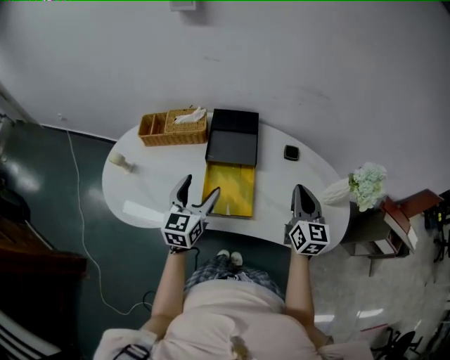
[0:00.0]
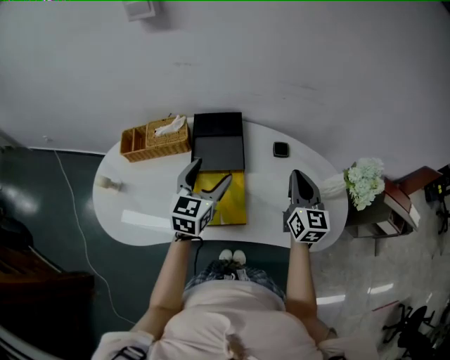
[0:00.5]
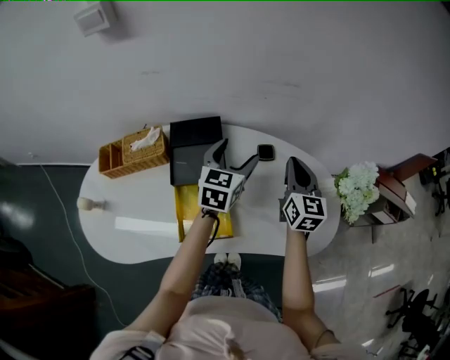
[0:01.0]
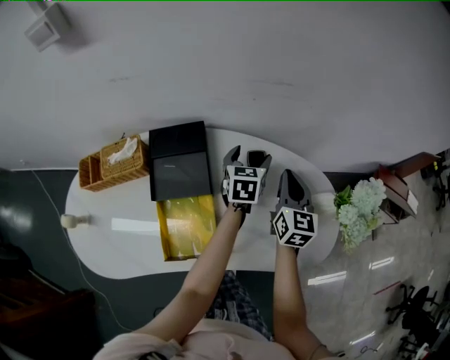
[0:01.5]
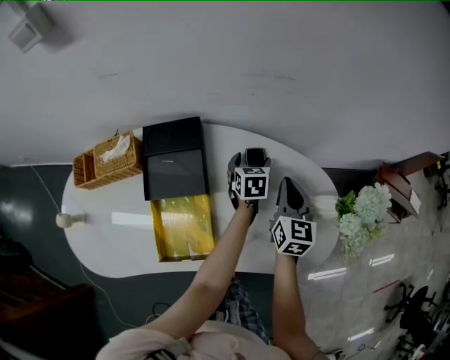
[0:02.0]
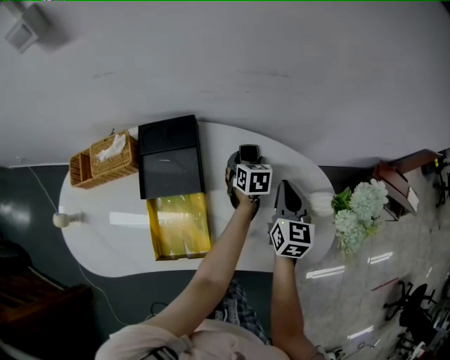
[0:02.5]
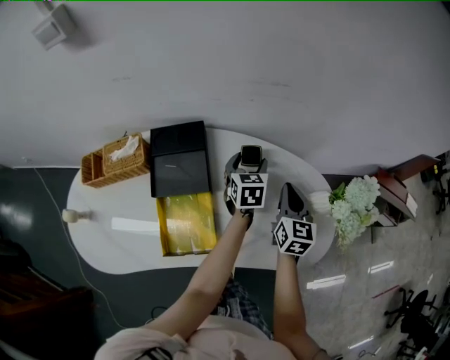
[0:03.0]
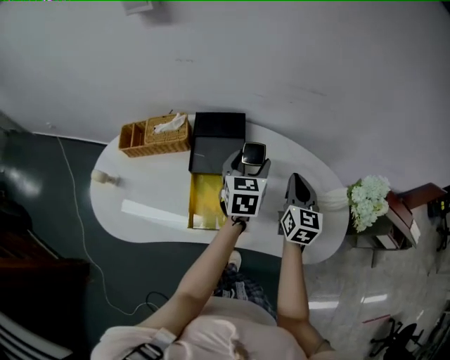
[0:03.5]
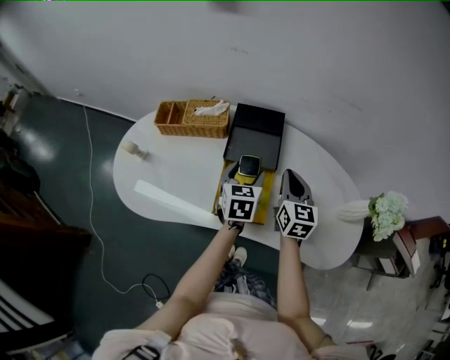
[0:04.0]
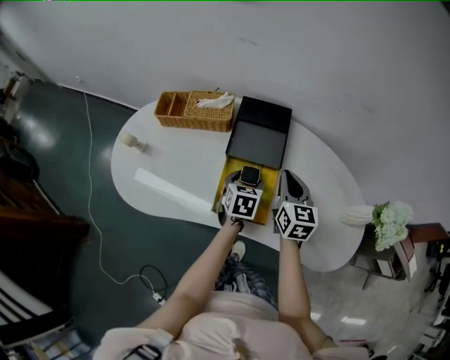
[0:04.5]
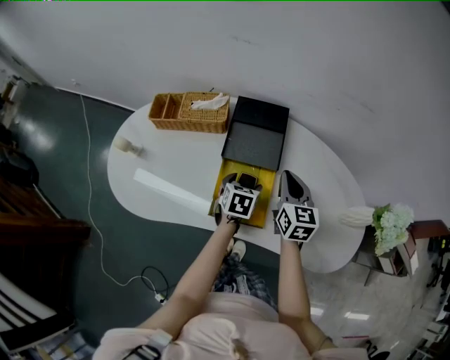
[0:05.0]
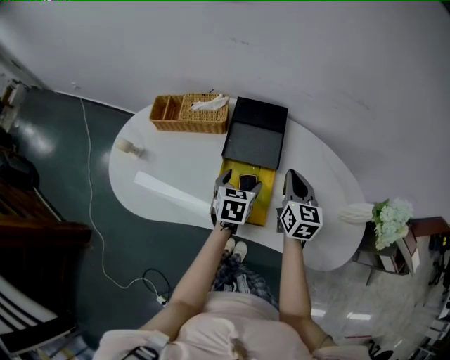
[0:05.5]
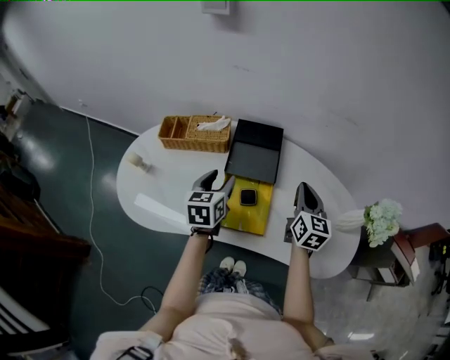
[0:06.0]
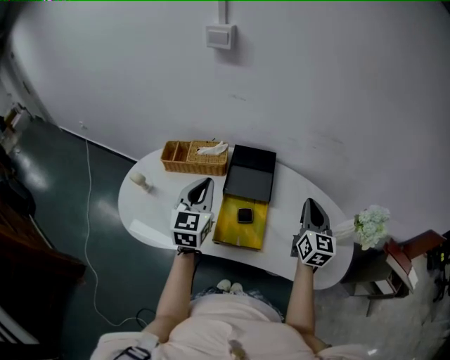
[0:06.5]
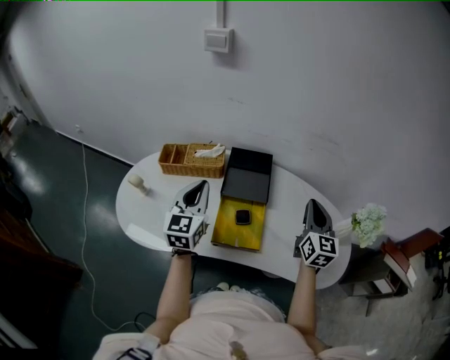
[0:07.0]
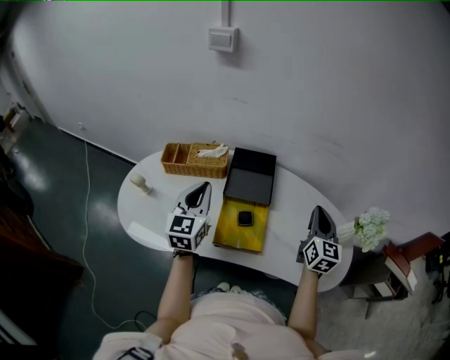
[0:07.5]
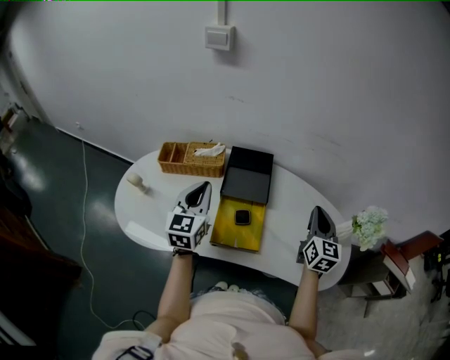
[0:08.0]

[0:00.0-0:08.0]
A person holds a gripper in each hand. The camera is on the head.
0:00.0 to 0:02.0: The right gripper goes roughly 20 cm forward, downward and to the right; the left gripper travels forward, to the right and downward by roughly 50 cm, and swivels about 30 degrees.
0:02.0 to 0:04.0: The right gripper shifts some 20 cm to the left and backward, and changes its angle by roughly 20 degrees. The left gripper moves to the left, backward and upward, about 35 cm.
0:04.0 to 0:06.0: The right gripper ends up approximately 5 cm from where it was. Meanwhile the left gripper is displaced to the left by some 10 cm, and reaches approximately 10 cm downward, then returns.
0:06.0 to 0:08.0: The right gripper shifts approximately 10 cm to the right and upward. The left gripper goes about 10 cm upward, turns by roughly 20 degrees, and closes up.

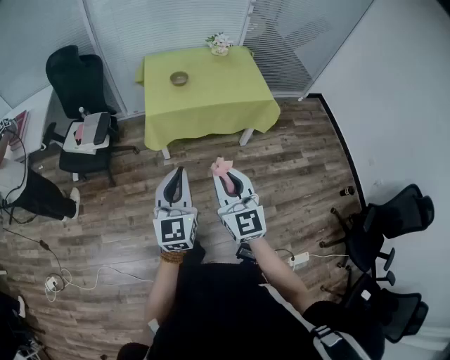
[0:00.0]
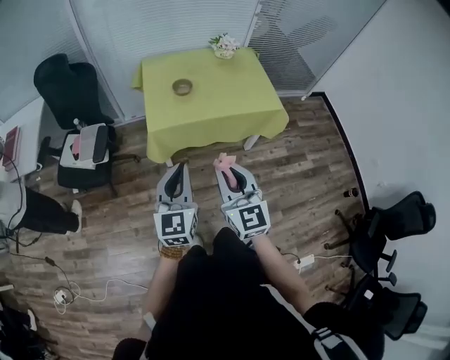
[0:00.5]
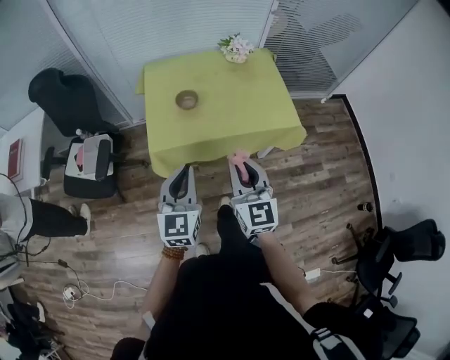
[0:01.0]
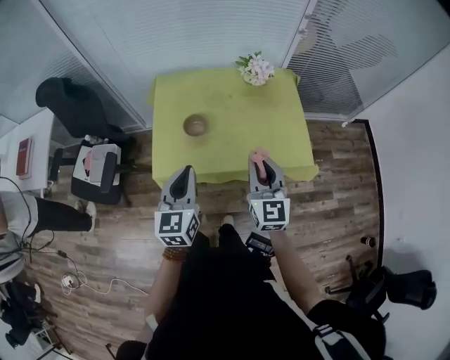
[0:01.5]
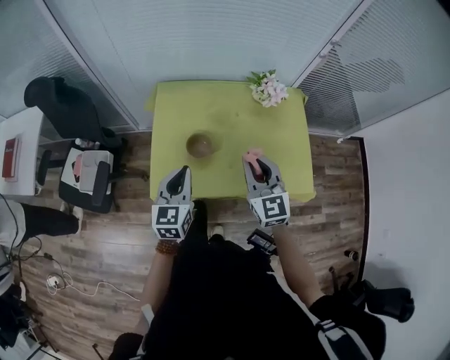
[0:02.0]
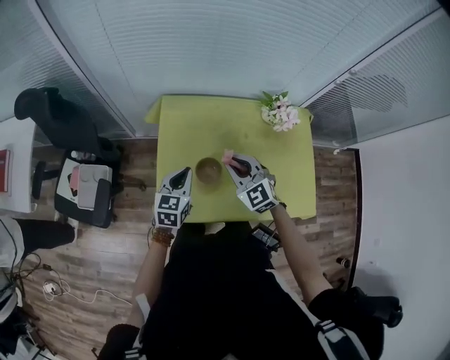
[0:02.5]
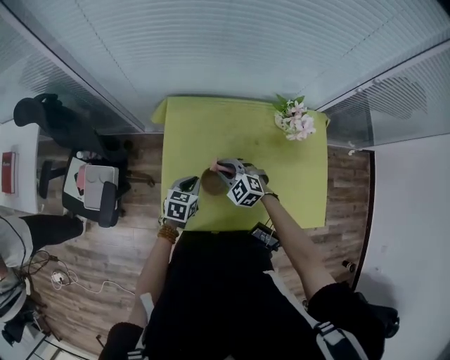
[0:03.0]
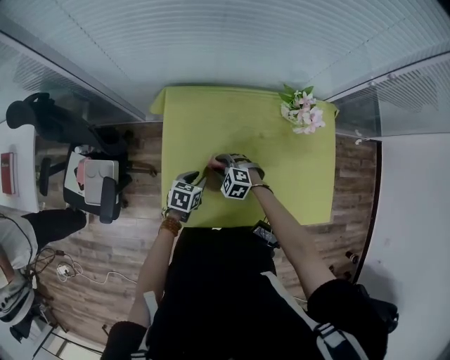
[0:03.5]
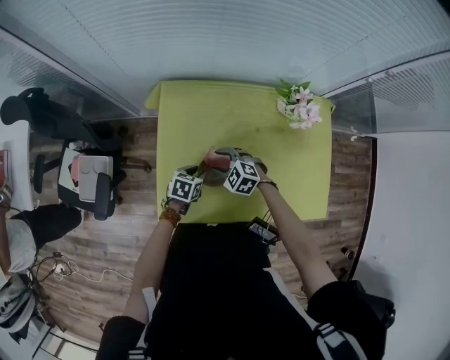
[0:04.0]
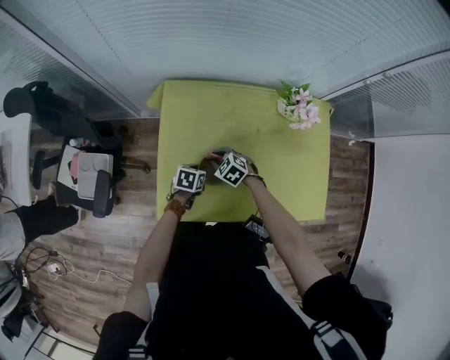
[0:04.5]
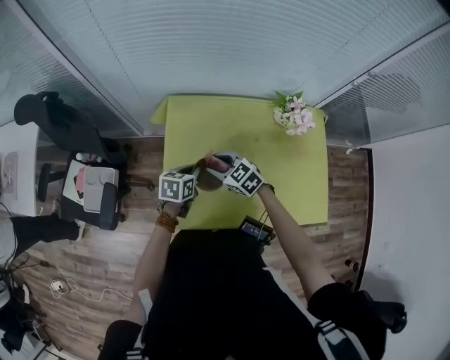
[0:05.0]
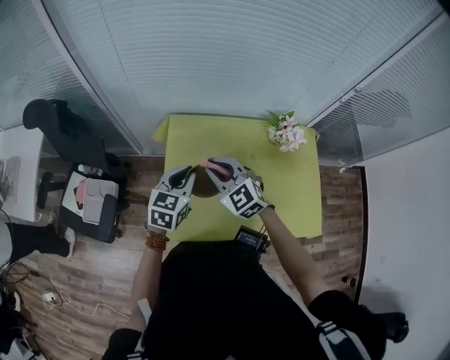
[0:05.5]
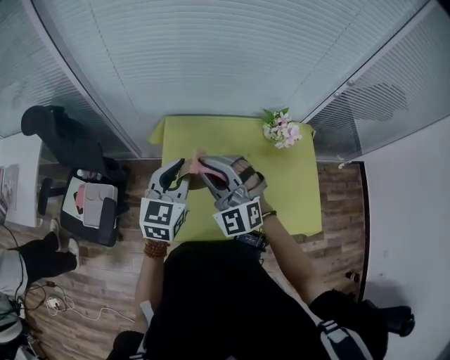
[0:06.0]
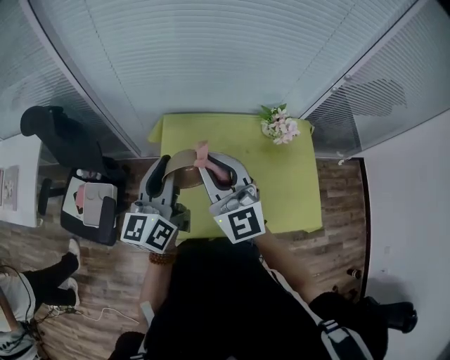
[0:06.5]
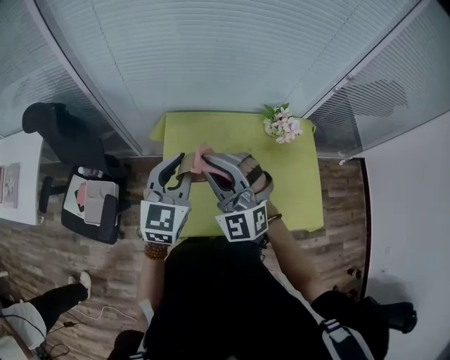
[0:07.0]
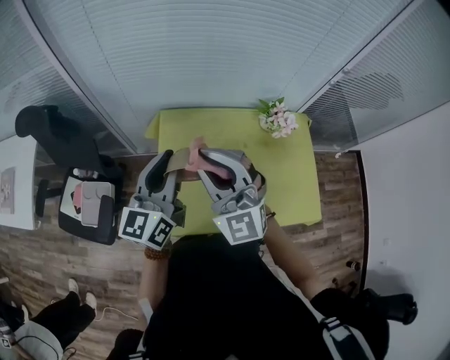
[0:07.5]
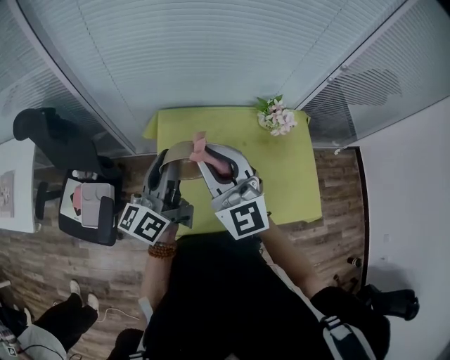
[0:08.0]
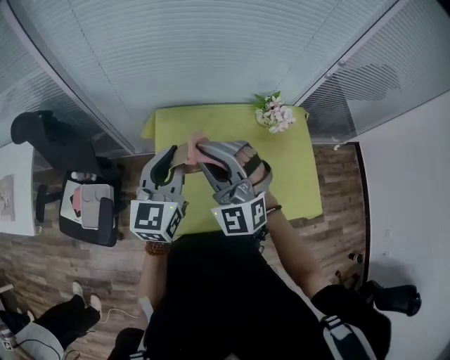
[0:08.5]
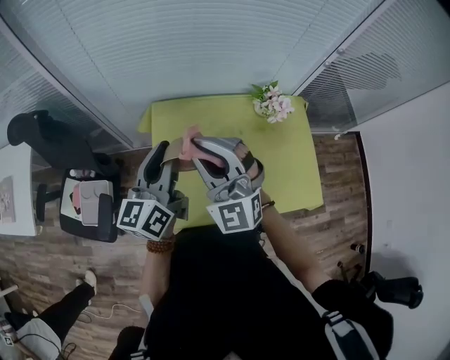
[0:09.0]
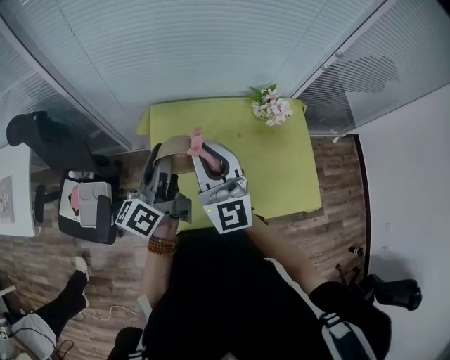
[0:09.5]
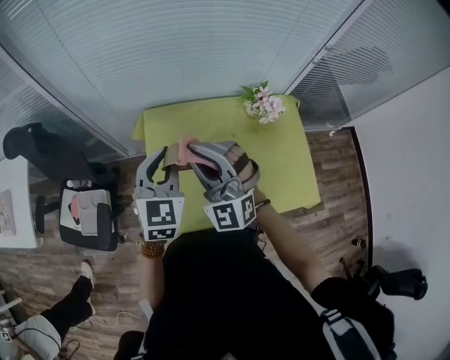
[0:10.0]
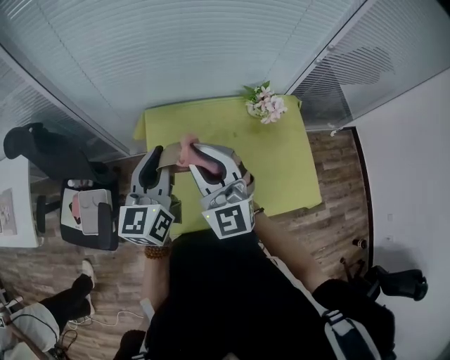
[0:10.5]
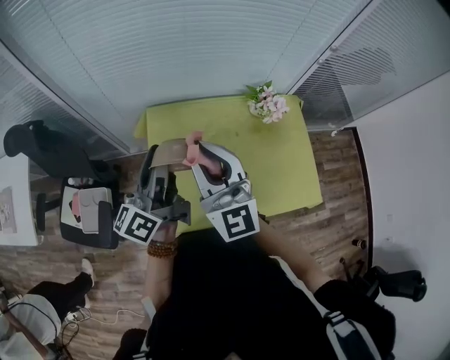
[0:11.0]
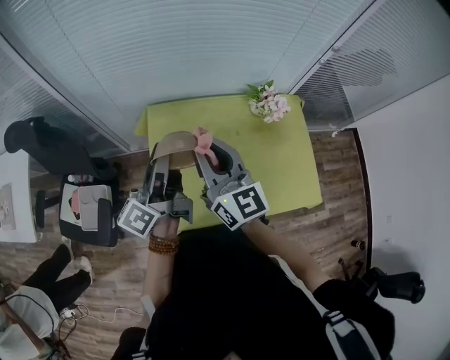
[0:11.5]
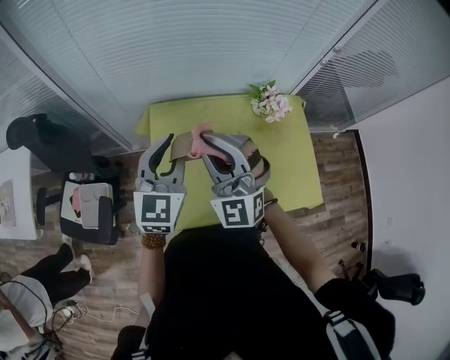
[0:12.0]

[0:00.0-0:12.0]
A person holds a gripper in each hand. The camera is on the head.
0:00.0 to 0:02.0: The two grippers travel together, forward, some 60 cm.
0:02.0 to 0:04.0: Both grippers travel together downward and forward, approximately 35 cm. The right gripper tips its fingers downward by approximately 40 degrees, and opens up; the left gripper tips its fingers downward by some 40 degrees, and opens.
0:04.0 to 0:06.0: Both grippers travel together upward, approximately 35 cm. The left gripper tilts its fingers approximately 40 degrees upward; the right gripper angles its fingers upward, by about 40 degrees, and closes up.
0:06.0 to 0:08.0: The two grippers go approximately 5 cm upward. The right gripper changes its angle by about 30 degrees, while the left gripper rolls counterclockwise, seen from behind, by approximately 40 degrees.
0:08.0 to 0:10.0: The right gripper changes its angle by about 30 degrees. Meanwhile the left gripper moves to the right, some 5 cm, and rotates around the line of its fingers by approximately 50 degrees, clockwise from behind.

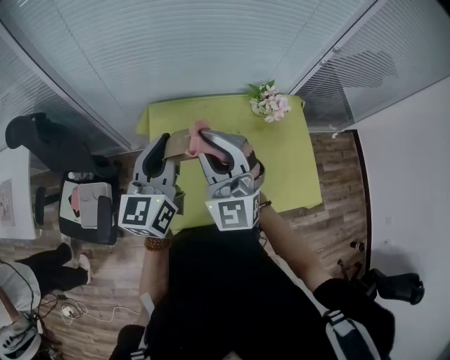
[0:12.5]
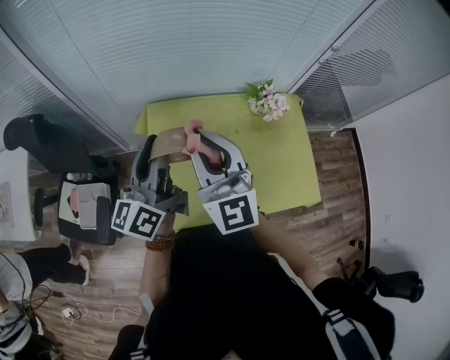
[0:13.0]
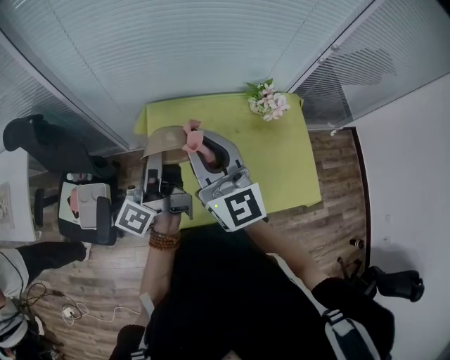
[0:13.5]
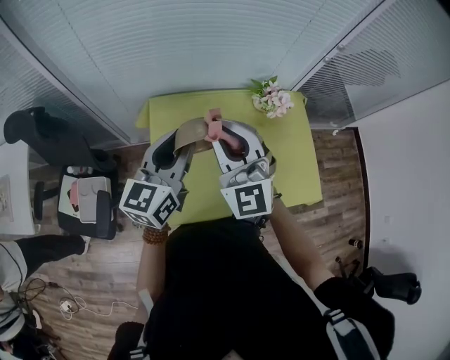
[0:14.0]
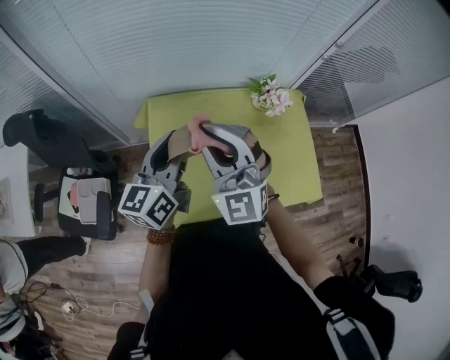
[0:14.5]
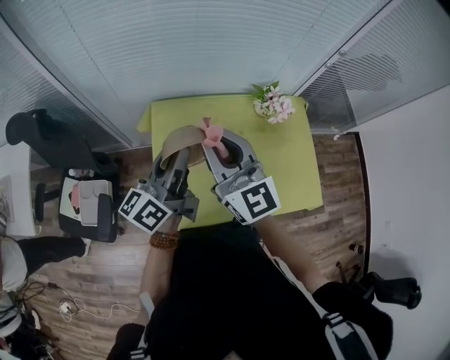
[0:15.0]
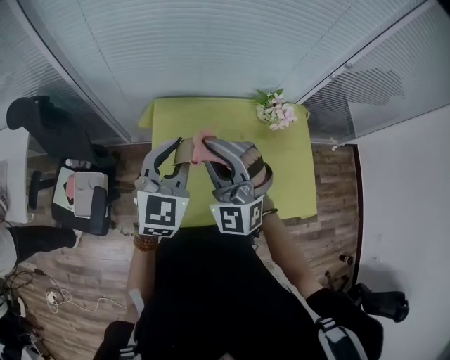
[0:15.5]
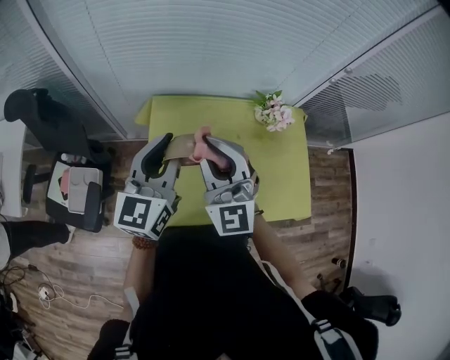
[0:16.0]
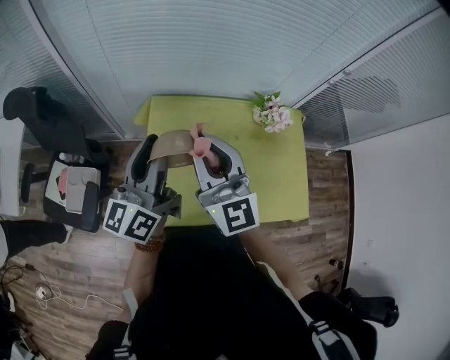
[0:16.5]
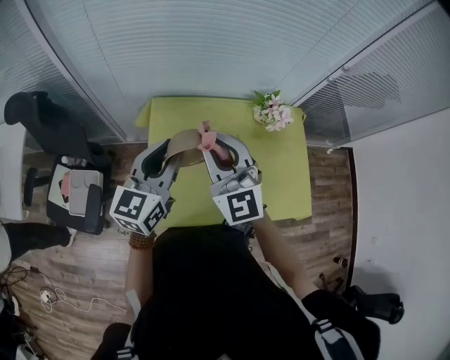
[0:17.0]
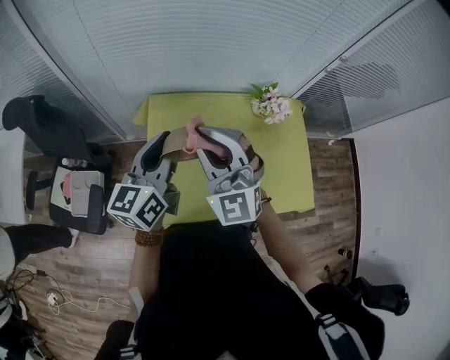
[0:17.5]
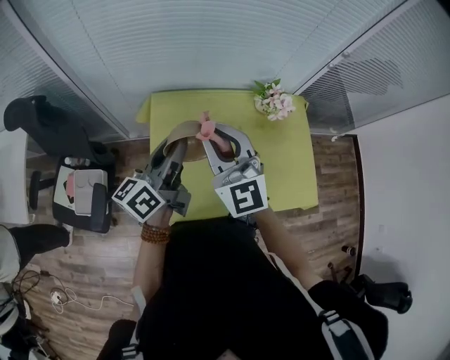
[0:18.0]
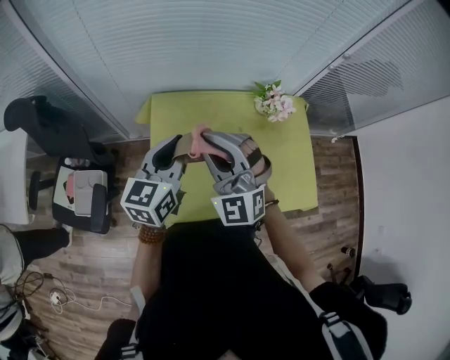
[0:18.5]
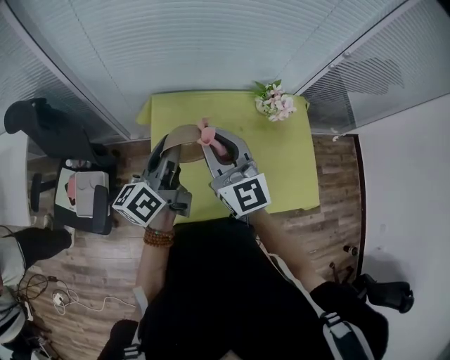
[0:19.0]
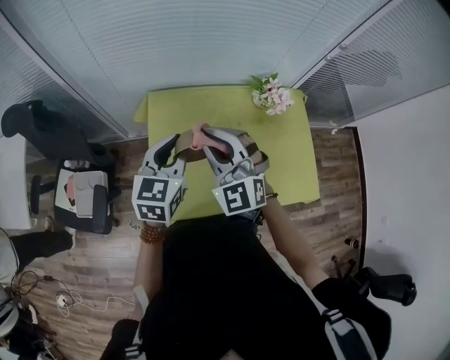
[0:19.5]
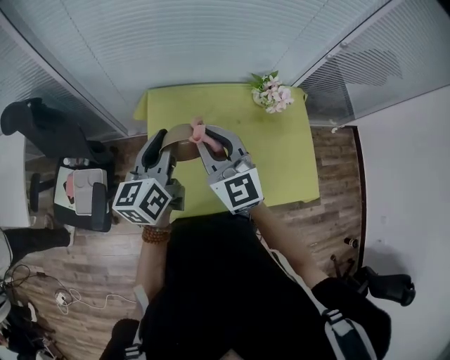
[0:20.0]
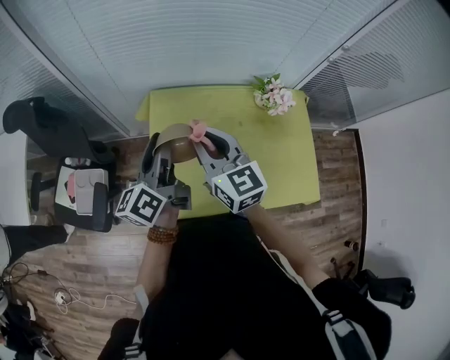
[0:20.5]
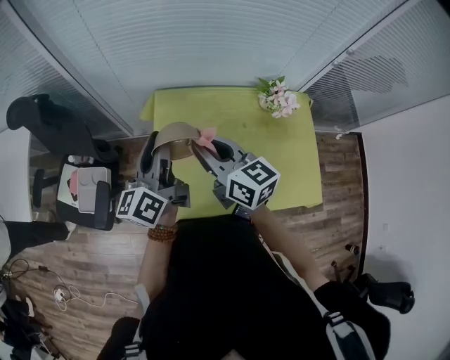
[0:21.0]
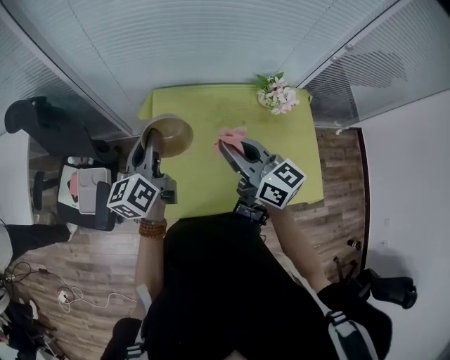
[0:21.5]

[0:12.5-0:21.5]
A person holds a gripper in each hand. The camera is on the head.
0:17.0 to 0:19.5: The left gripper changes place by some 5 cm.
0:19.5 to 0:21.5: The left gripper shifts approximately 10 cm to the left, and changes its angle by roughly 40 degrees. Meanwhile the right gripper ends up approximately 5 cm from where it was, and rotates around the line of its fingers by roughly 60 degrees, clockwise from behind.
